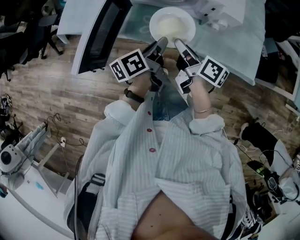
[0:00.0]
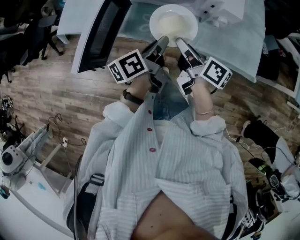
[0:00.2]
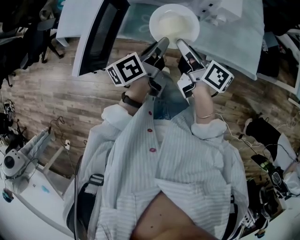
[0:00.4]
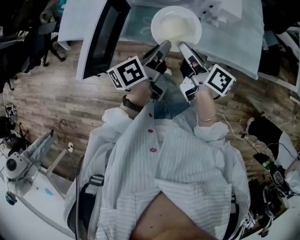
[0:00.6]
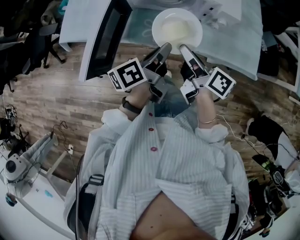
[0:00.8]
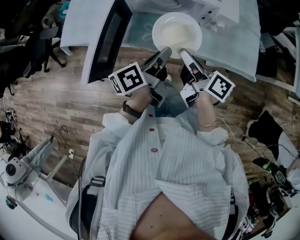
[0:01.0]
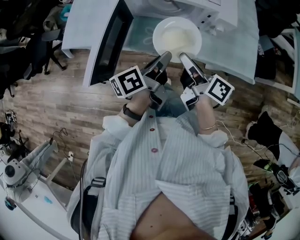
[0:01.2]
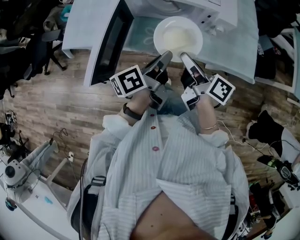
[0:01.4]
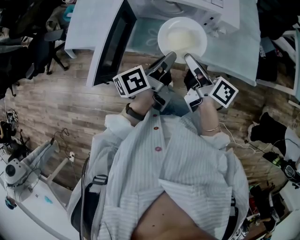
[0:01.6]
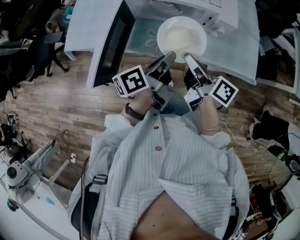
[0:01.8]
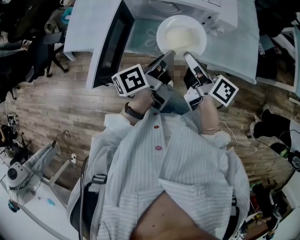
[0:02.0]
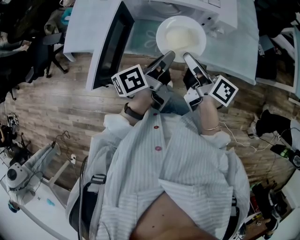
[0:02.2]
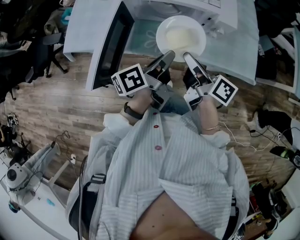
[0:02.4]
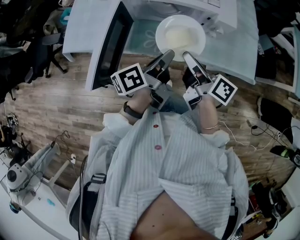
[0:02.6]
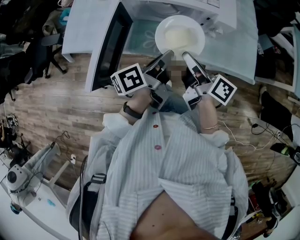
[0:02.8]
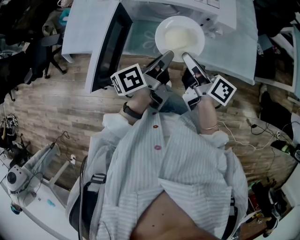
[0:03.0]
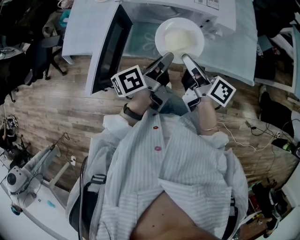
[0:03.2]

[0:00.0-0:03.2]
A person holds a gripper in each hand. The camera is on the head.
0:00.0 to 0:01.6: The grippers both shift upward by about 5 cm.
0:01.6 to 0:03.2: Both grippers stay about where they are.

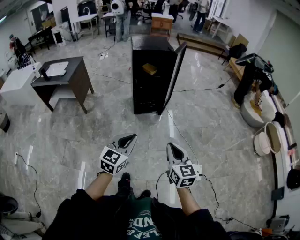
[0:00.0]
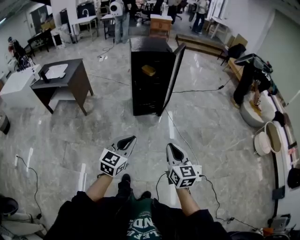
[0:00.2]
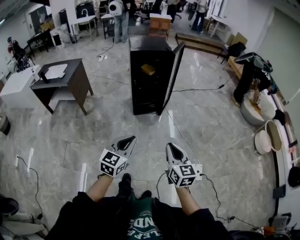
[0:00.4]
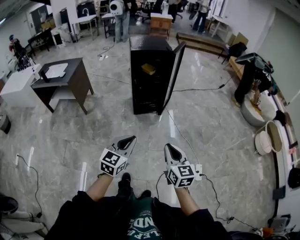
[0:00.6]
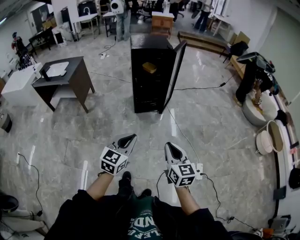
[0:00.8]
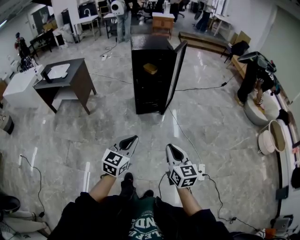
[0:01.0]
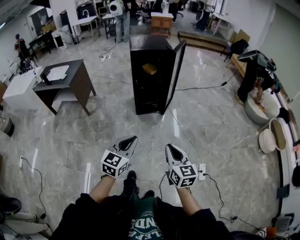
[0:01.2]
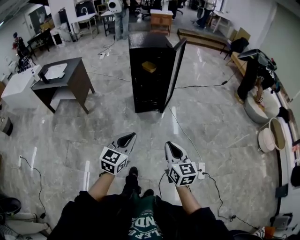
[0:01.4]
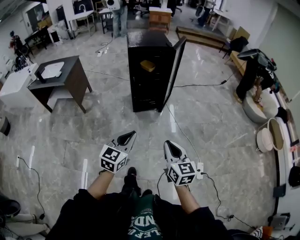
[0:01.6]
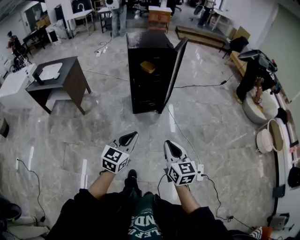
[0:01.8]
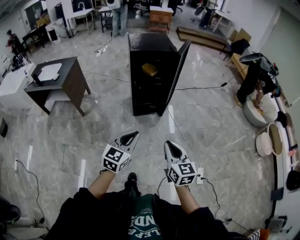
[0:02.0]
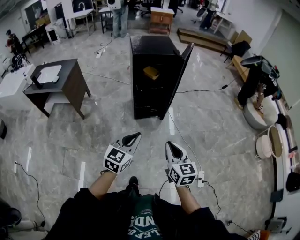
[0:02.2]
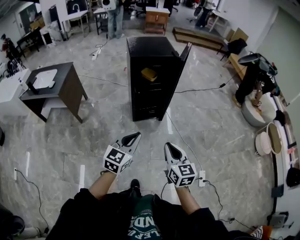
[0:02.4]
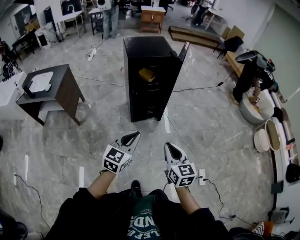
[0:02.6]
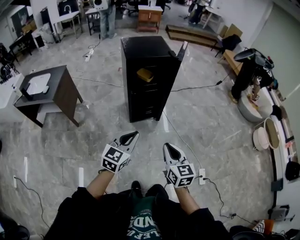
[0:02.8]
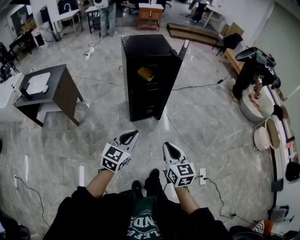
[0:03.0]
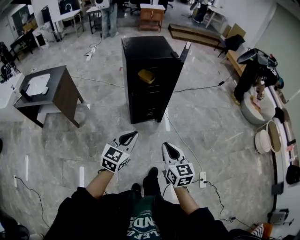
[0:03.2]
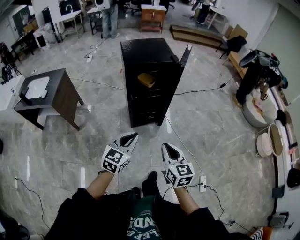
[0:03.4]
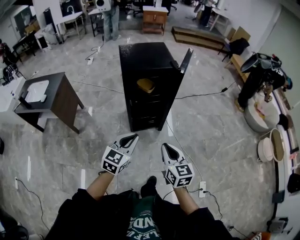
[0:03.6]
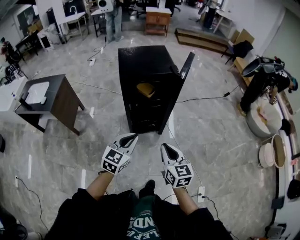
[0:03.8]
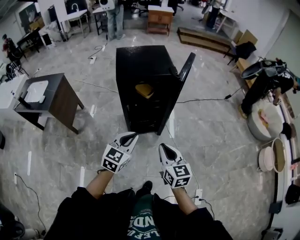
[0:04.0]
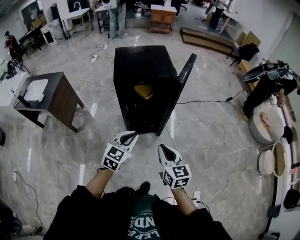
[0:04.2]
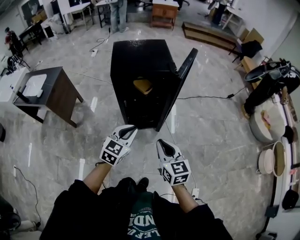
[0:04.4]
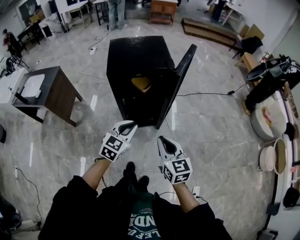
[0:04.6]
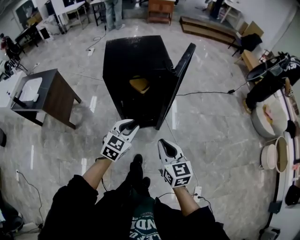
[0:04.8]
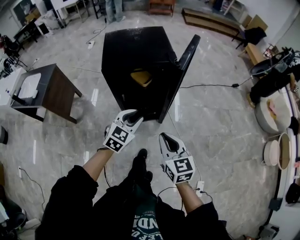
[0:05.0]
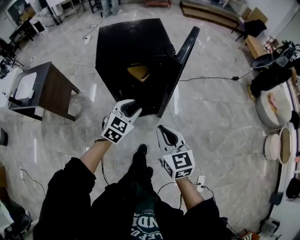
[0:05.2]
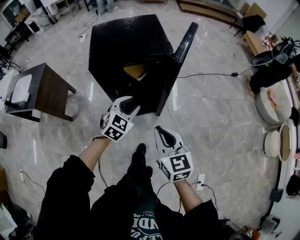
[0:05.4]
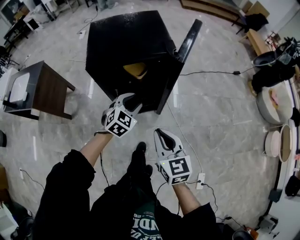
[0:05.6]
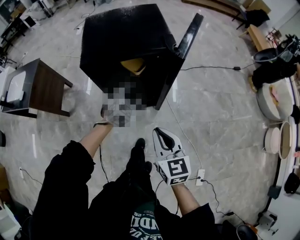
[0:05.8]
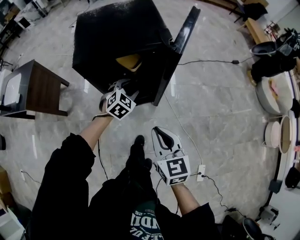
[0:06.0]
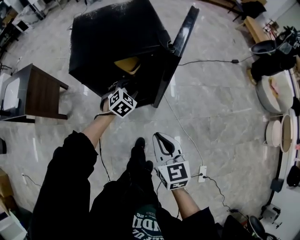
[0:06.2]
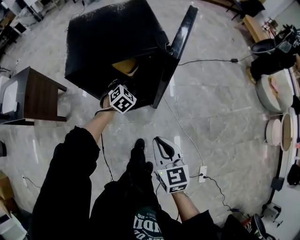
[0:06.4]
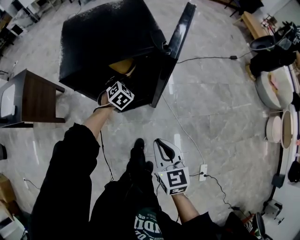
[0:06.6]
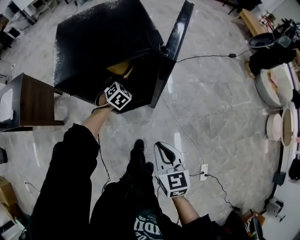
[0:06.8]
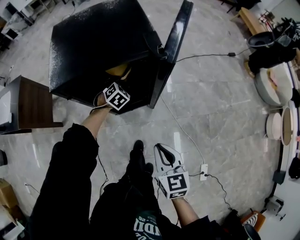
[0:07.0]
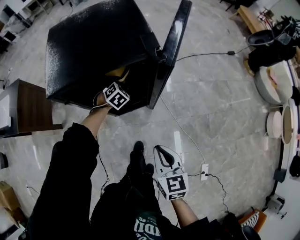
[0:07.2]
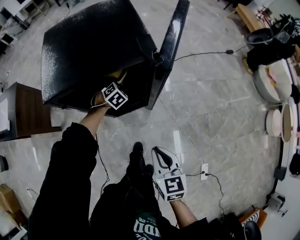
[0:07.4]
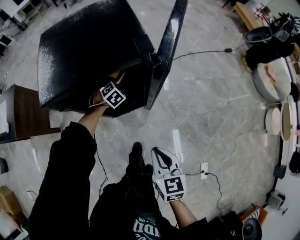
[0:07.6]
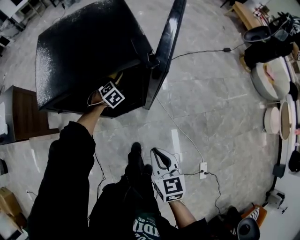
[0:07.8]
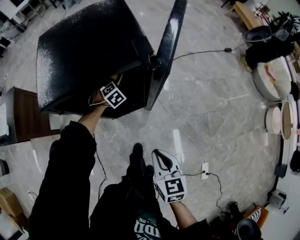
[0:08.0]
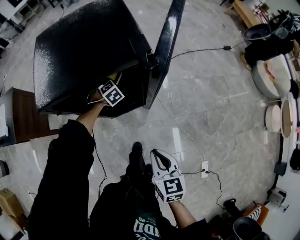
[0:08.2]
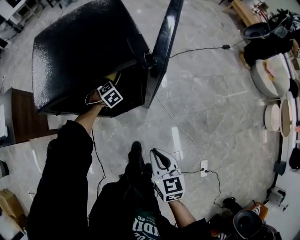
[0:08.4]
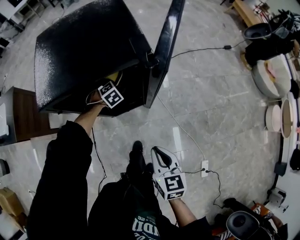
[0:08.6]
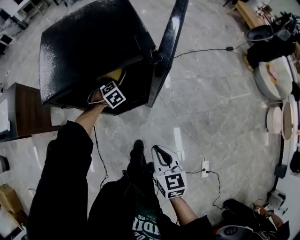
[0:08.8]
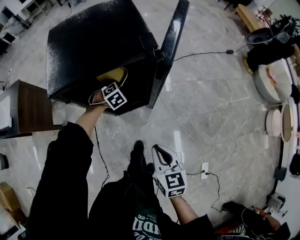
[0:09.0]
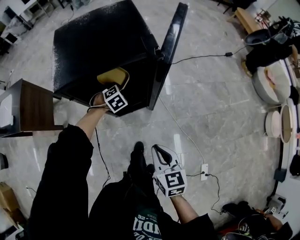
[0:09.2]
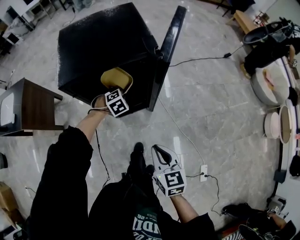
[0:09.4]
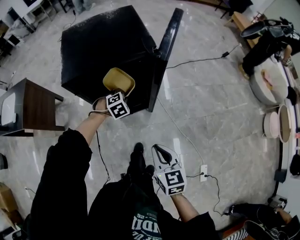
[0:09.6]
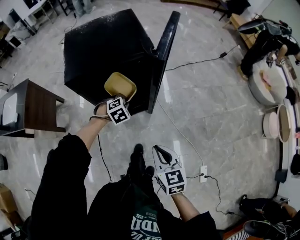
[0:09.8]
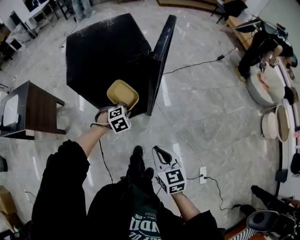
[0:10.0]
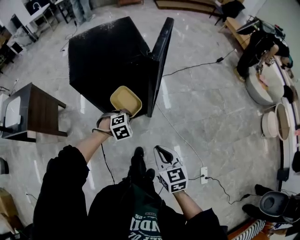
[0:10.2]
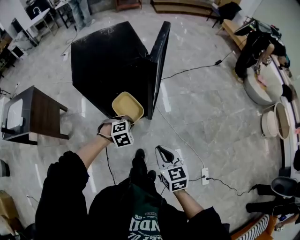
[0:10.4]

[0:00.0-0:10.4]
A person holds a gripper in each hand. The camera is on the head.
0:00.0 to 0:01.4: The grippers stay close to where they were, moving slightly.
0:01.4 to 0:03.0: The grippers both shift forward and to the left by approximately 25 cm.
0:03.0 to 0:04.4: Both grippers travel together forward, roughly 25 cm.
0:04.4 to 0:06.0: The left gripper heads forward and downward, covering roughly 30 cm, swivels approximately 30 degrees, and opens its fingers. The right gripper heads forward and downward, covering about 15 cm.
0:06.0 to 0:07.4: The right gripper heads downward, covering roughly 10 cm. The left gripper goes about 20 cm forward and downward.
0:07.4 to 0:09.0: The left gripper closes up.
0:09.0 to 0:10.4: The right gripper moves backward and upward, roughly 10 cm, while the left gripper shifts approximately 30 cm backward and upward, and changes its angle by approximately 20 degrees.

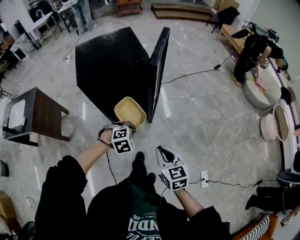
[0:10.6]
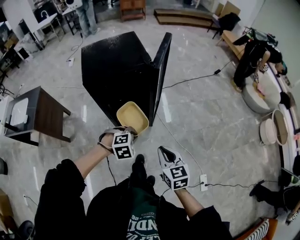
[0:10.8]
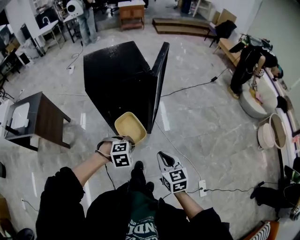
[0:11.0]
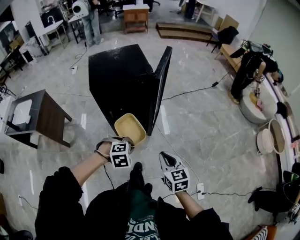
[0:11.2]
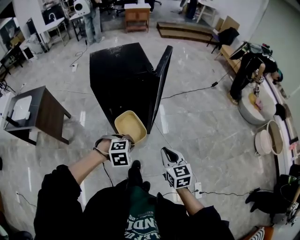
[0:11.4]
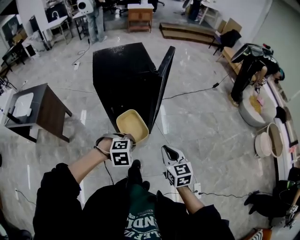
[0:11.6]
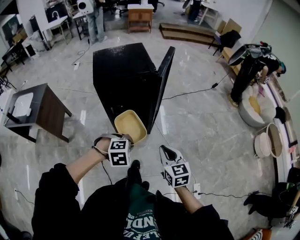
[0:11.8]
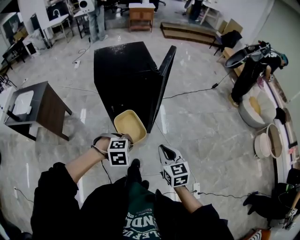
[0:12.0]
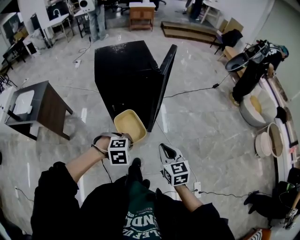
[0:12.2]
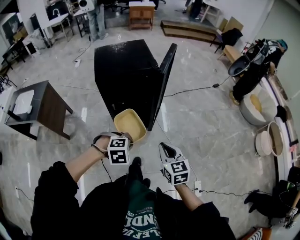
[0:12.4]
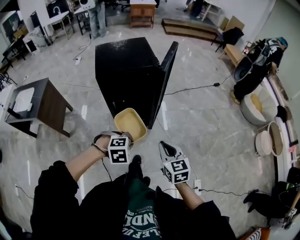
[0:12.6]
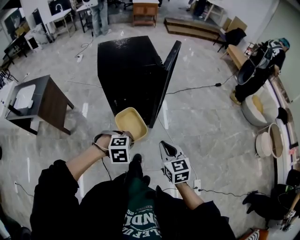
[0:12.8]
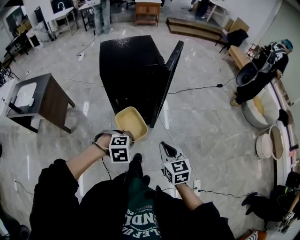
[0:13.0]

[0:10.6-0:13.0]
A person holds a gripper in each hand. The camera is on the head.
0:10.6 to 0:11.8: The right gripper heads upward, covering approximately 5 cm. The left gripper heads backward and upward, covering some 15 cm.
0:11.8 to 0:13.0: The grippers move only a little.

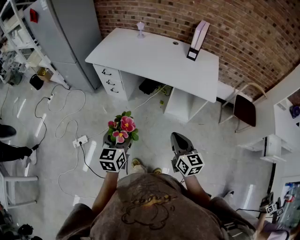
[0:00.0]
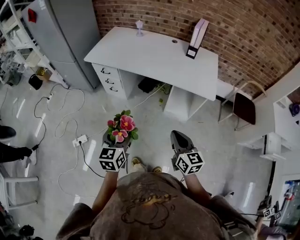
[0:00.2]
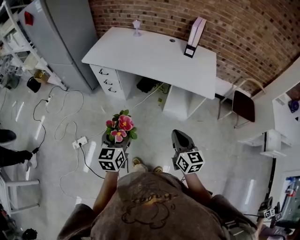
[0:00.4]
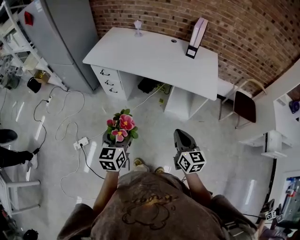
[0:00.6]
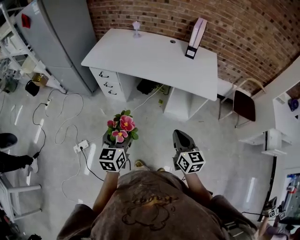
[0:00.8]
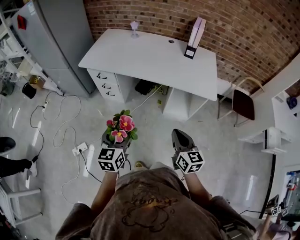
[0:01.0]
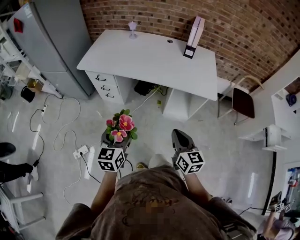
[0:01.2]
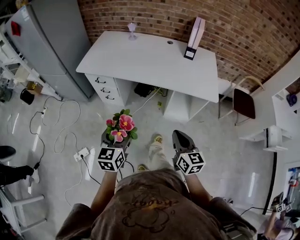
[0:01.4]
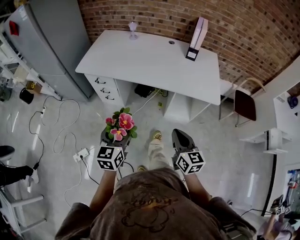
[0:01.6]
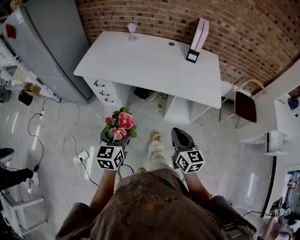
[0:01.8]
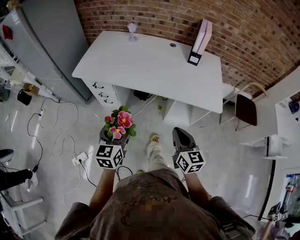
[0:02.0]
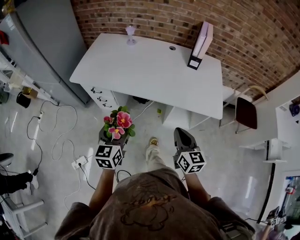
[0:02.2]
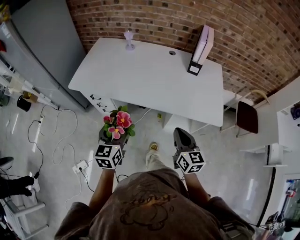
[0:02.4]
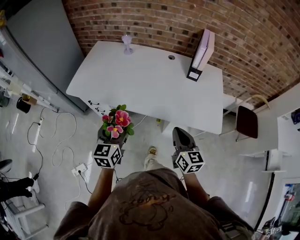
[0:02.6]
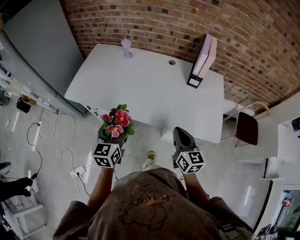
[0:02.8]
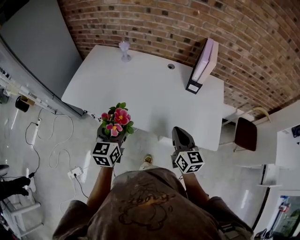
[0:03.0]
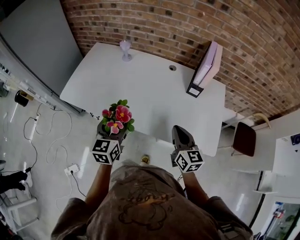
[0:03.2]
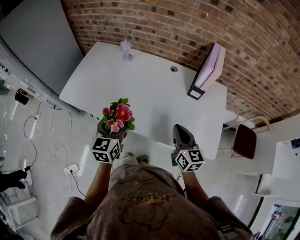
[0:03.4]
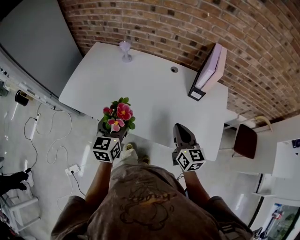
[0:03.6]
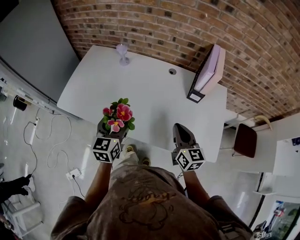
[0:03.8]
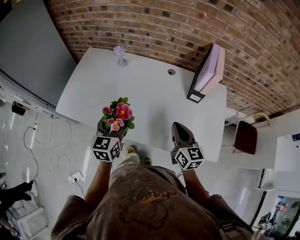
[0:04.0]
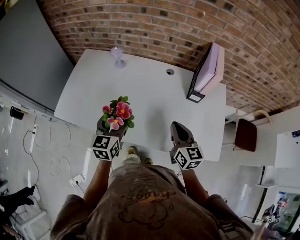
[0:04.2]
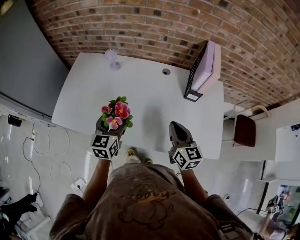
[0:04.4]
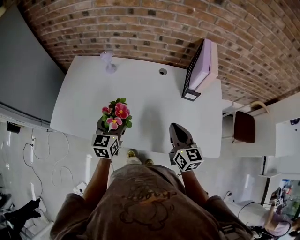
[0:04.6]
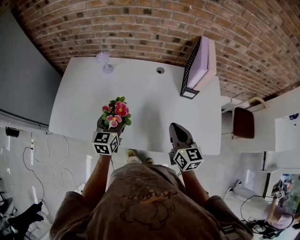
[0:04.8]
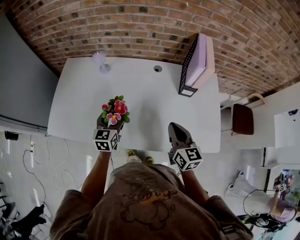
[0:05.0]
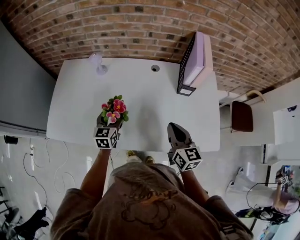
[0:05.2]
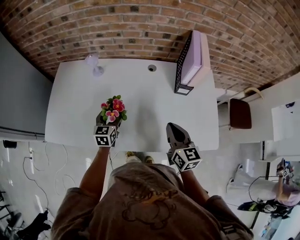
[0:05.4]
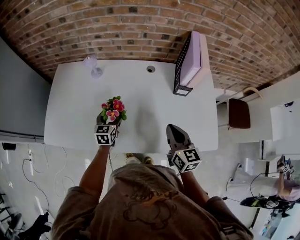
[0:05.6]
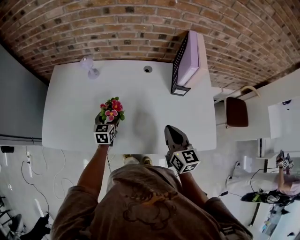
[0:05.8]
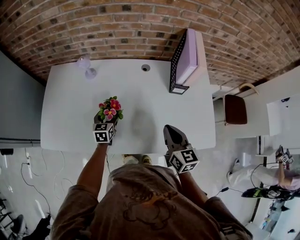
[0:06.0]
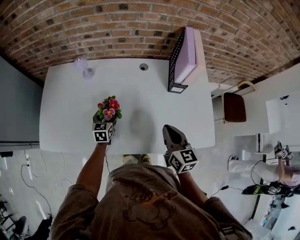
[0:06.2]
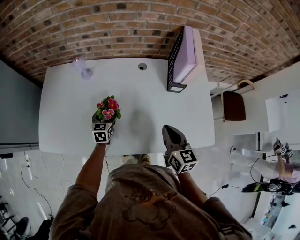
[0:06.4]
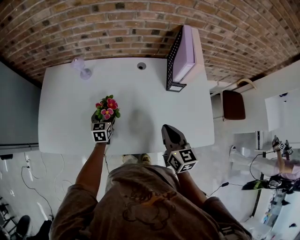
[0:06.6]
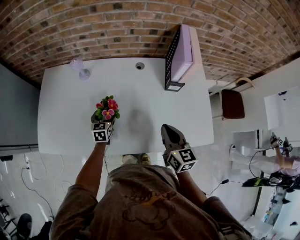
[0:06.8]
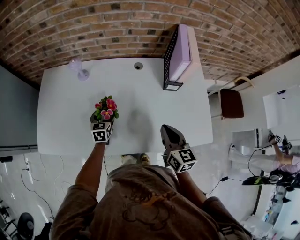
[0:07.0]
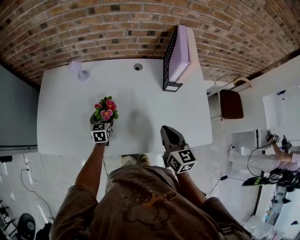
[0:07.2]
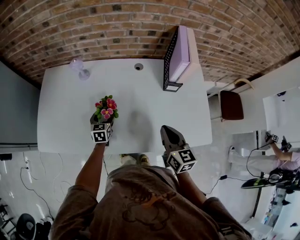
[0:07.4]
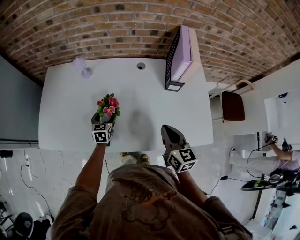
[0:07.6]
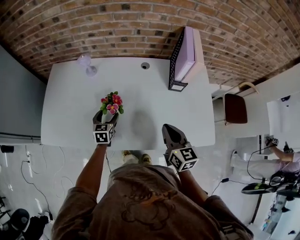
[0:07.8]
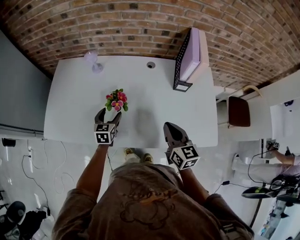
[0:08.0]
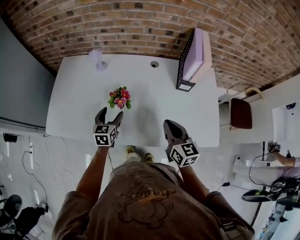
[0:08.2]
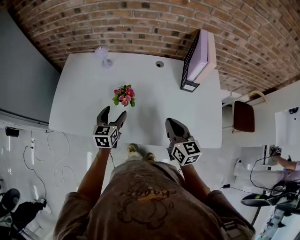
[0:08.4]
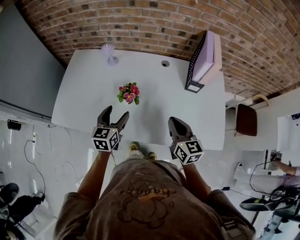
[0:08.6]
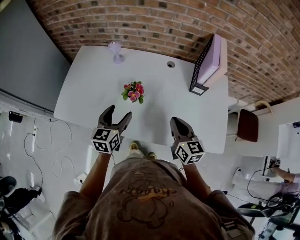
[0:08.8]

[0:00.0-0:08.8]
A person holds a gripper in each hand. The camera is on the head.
0:00.0 to 0:01.4: The left gripper is displaced forward and to the left by about 10 cm; the right gripper is displaced forward by about 10 cm.
0:01.4 to 0:03.0: The grippers both shift forward by some 35 cm.
0:03.0 to 0:04.4: Both grippers travel together forward, roughly 15 cm.
0:04.4 to 0:05.8: The left gripper is displaced downward and forward by some 20 cm.
0:05.8 to 0:07.4: The grippers stay close to where they were, moving slightly.
0:07.4 to 0:08.8: The right gripper goes some 5 cm to the left; the left gripper travels upward and backward by roughly 20 cm.
